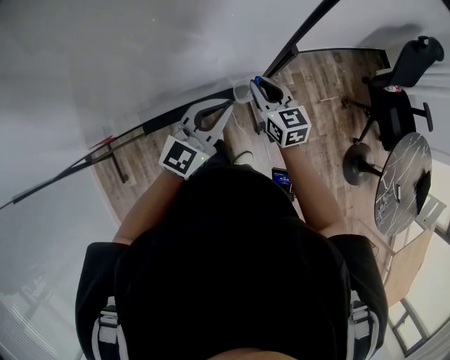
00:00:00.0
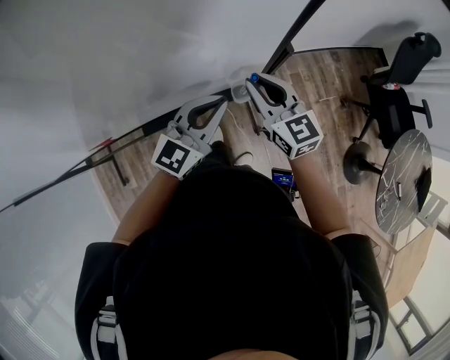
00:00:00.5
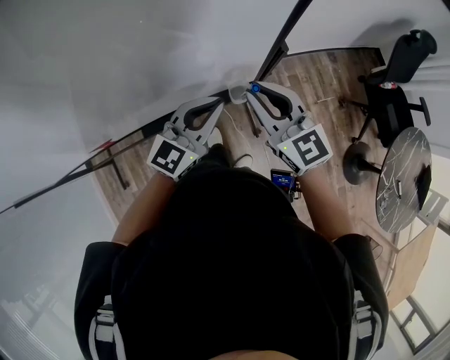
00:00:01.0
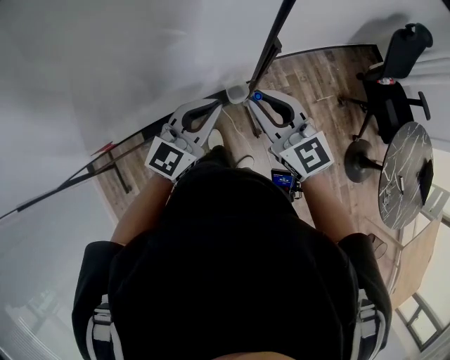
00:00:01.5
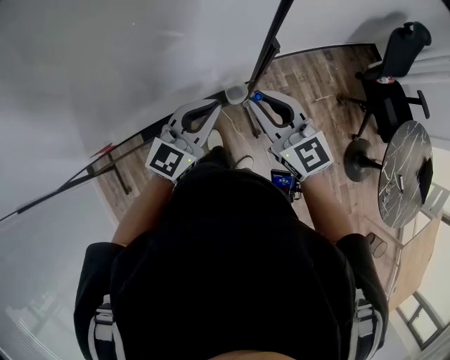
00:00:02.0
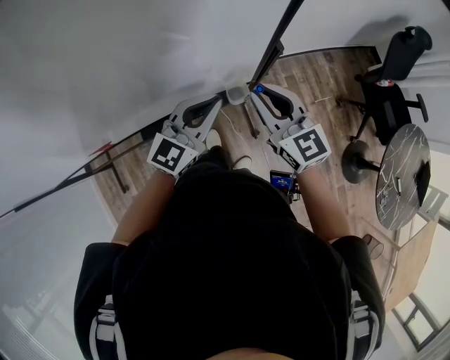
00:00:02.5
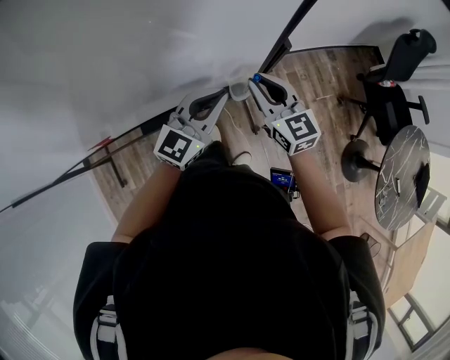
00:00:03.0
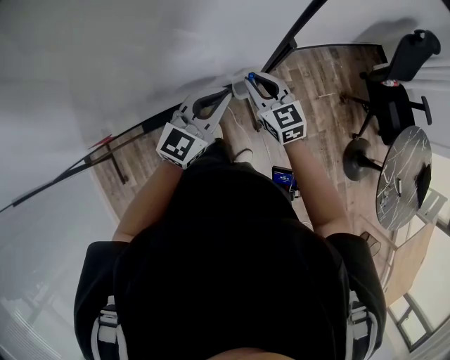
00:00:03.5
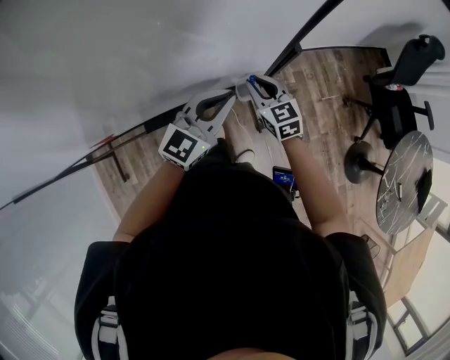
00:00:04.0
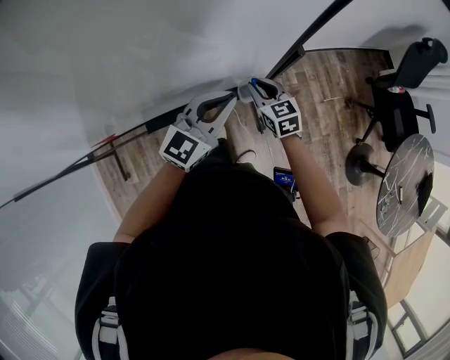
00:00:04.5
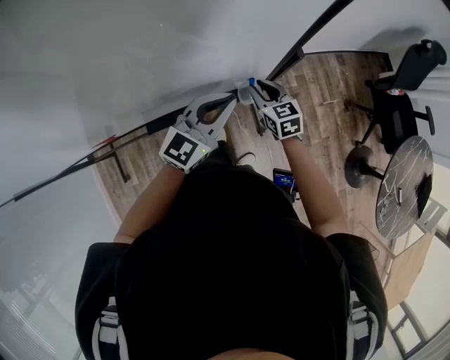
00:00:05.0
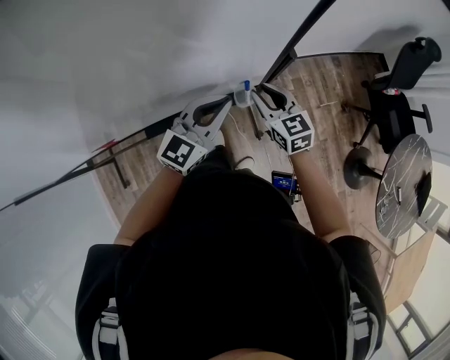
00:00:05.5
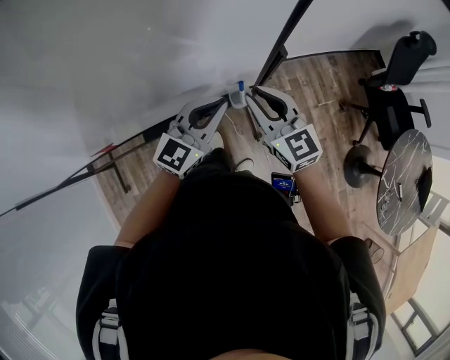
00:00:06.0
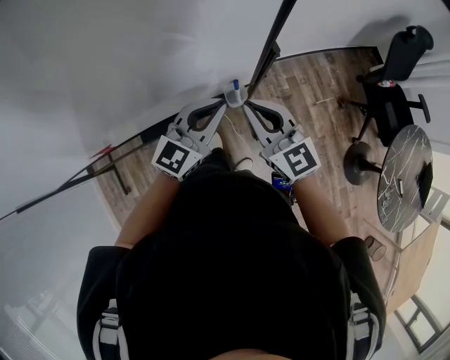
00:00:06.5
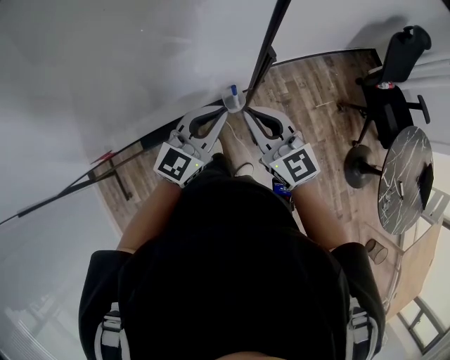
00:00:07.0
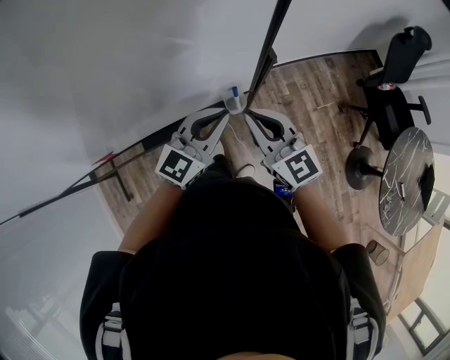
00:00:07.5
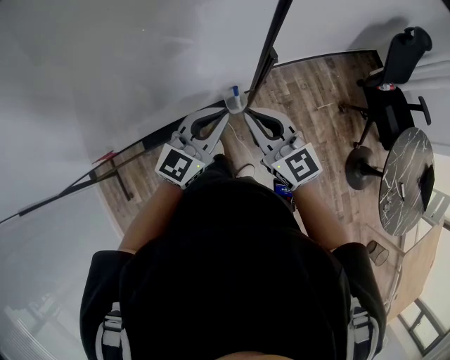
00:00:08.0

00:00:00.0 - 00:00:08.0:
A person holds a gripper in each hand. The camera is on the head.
00:00:00.0 - 00:00:02.0: The right gripper shifts some 15 cm upward and backward.
00:00:02.0 - 00:00:04.0: The right gripper is displaced downward and forward by roughly 20 cm.
00:00:04.0 - 00:00:06.0: The right gripper travels upward by about 15 cm.
00:00:06.0 - 00:00:08.0: The grippers make only small movements.

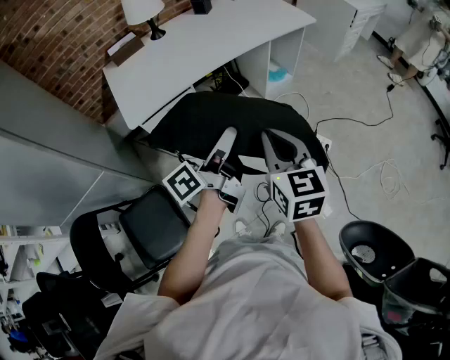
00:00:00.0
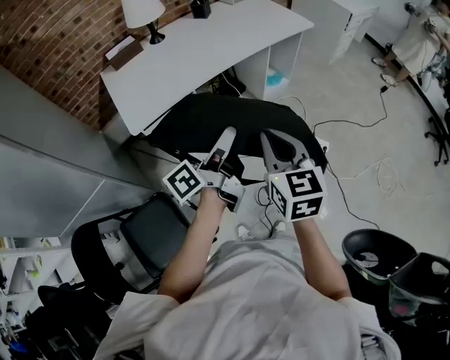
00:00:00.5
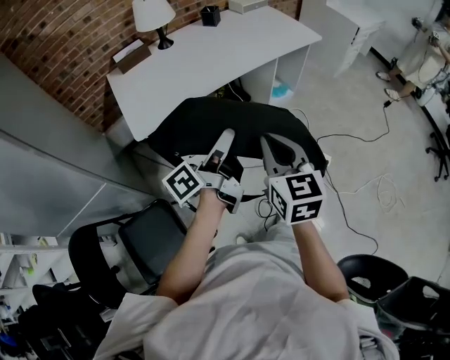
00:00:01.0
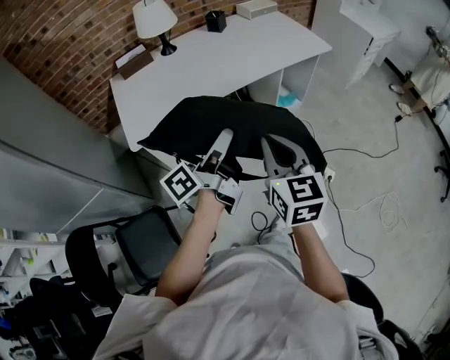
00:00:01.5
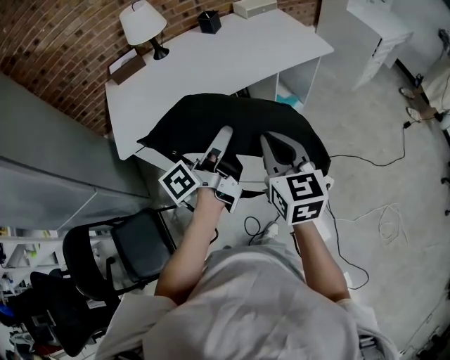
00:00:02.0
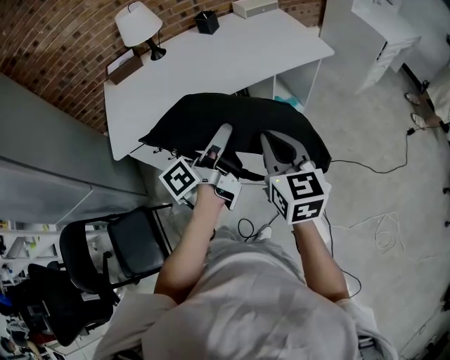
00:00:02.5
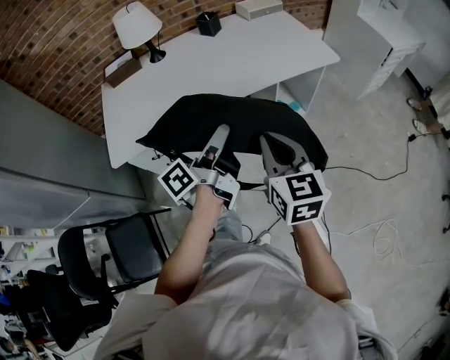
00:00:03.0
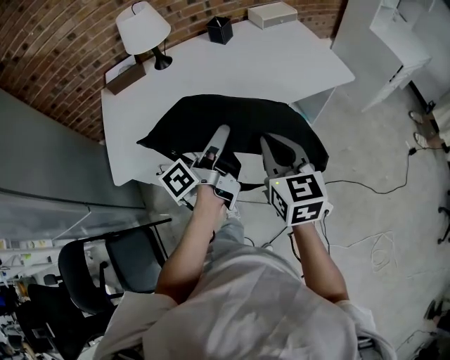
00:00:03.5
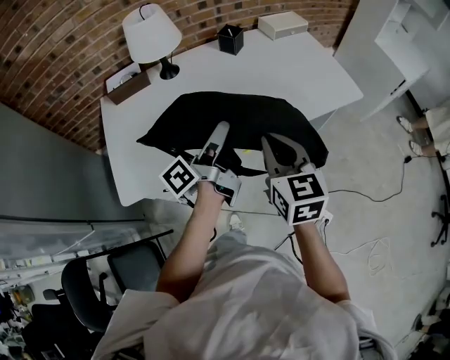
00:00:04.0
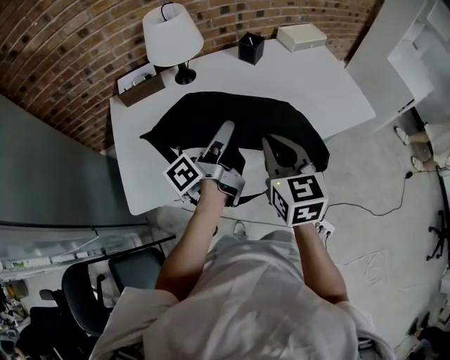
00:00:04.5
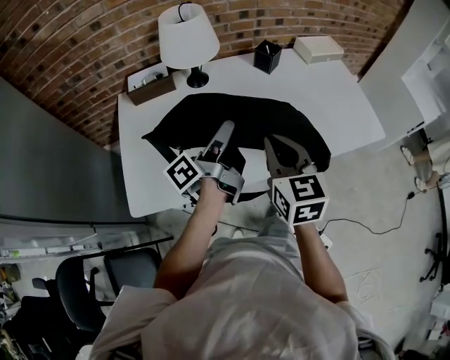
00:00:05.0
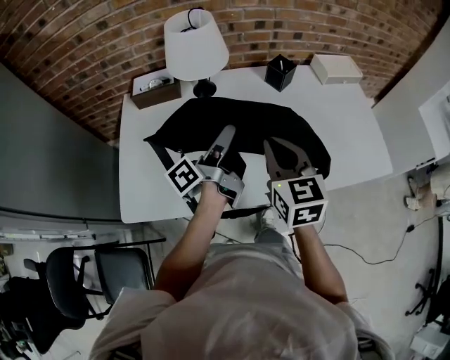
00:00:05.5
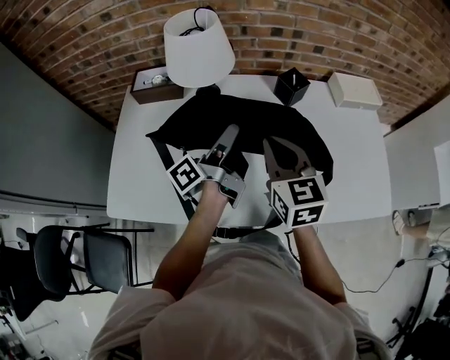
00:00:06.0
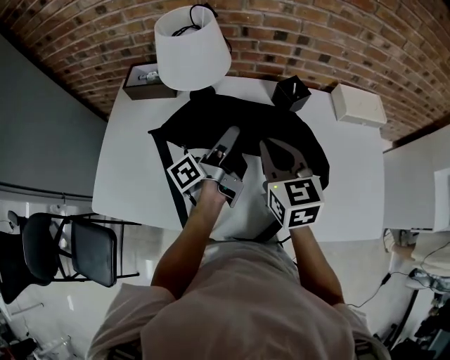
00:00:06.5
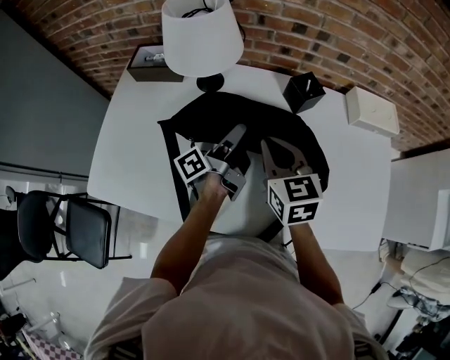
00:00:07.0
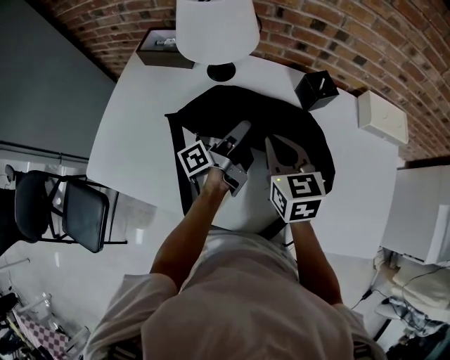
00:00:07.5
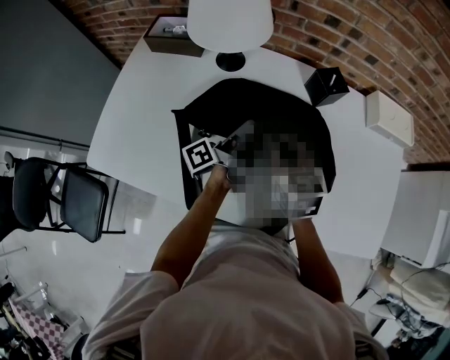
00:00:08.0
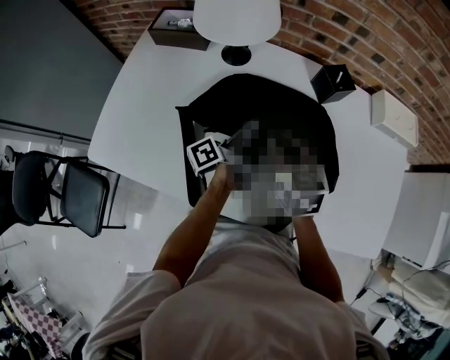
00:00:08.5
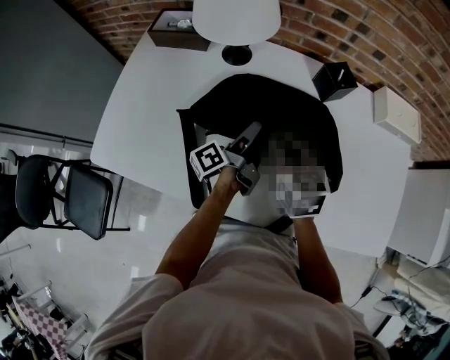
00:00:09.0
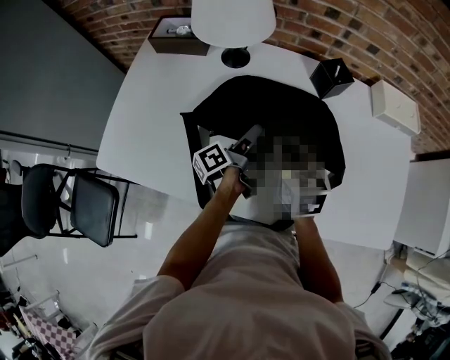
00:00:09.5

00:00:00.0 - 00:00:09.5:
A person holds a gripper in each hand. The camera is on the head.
00:00:00.0 - 00:00:02.0: The right gripper shifts by about 20 cm.
00:00:02.0 - 00:00:04.0: The right gripper shifts by roughly 25 cm.
00:00:04.0 - 00:00:05.5: The right gripper ends up roughly 20 cm from where it was.
00:00:05.5 - 00:00:07.5: The right gripper ends up roughly 20 cm from where it was, and turns by about 20 degrees.
00:00:07.5 - 00:00:09.5: The right gripper moves roughly 5 cm.

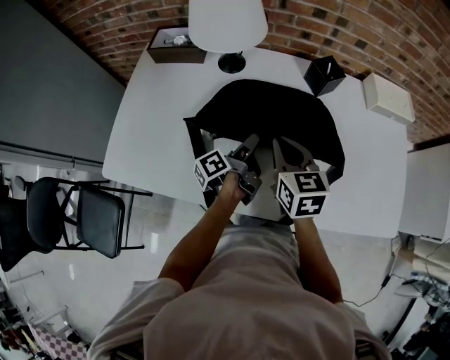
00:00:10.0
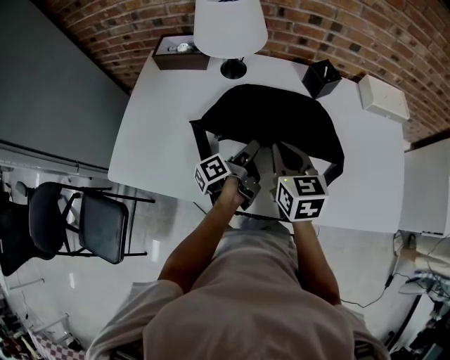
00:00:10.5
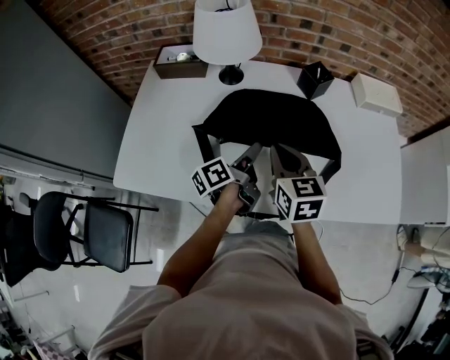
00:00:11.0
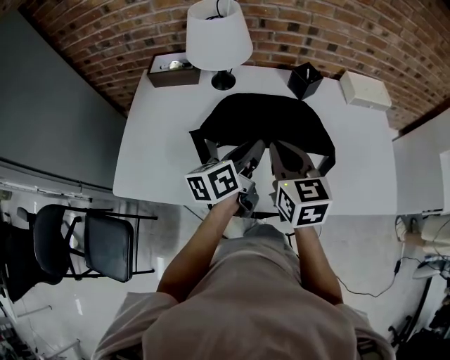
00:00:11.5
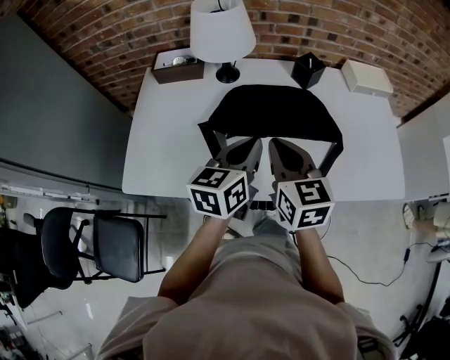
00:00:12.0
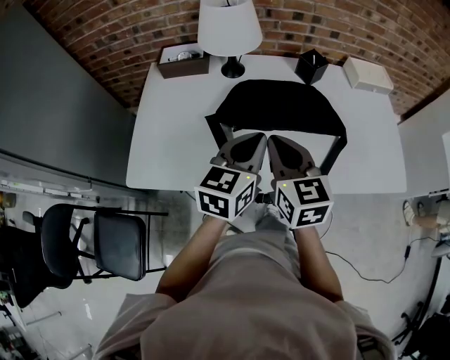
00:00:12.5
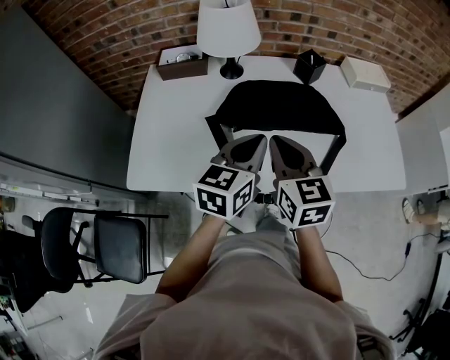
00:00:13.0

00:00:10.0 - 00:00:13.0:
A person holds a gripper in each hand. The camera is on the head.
00:00:10.0 - 00:00:11.5: The right gripper heads upward, covering roughly 10 cm.
00:00:11.5 - 00:00:13.0: The right gripper ends up roughly 10 cm from where it was.

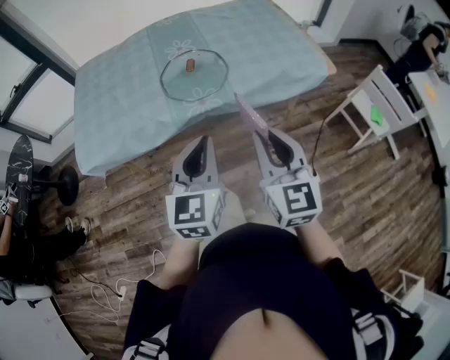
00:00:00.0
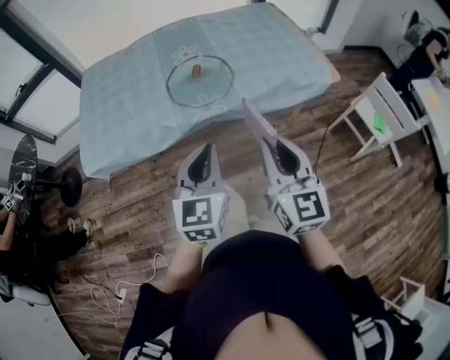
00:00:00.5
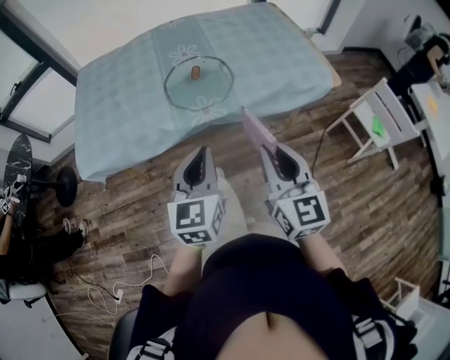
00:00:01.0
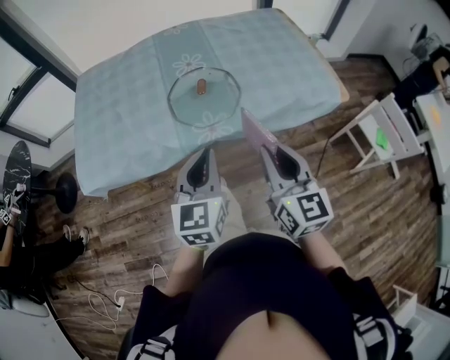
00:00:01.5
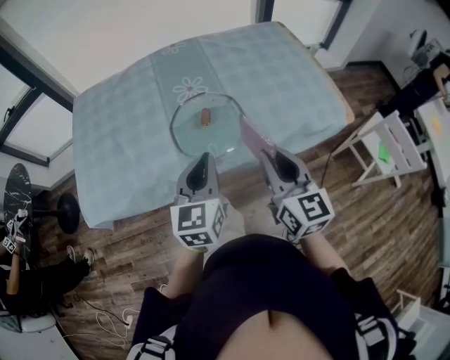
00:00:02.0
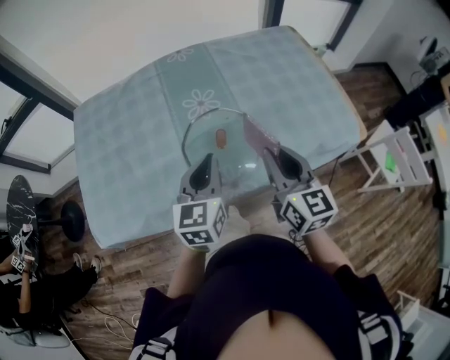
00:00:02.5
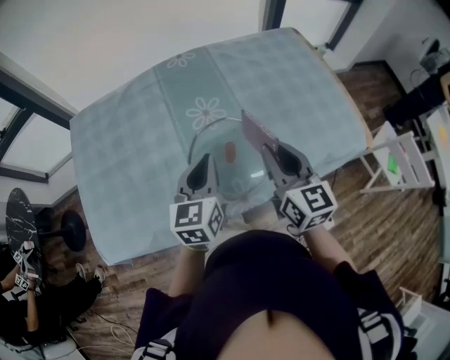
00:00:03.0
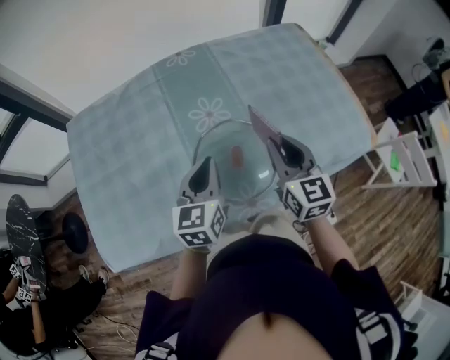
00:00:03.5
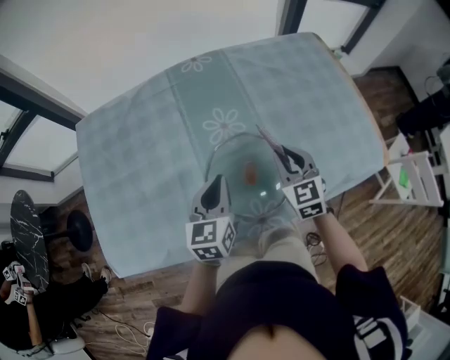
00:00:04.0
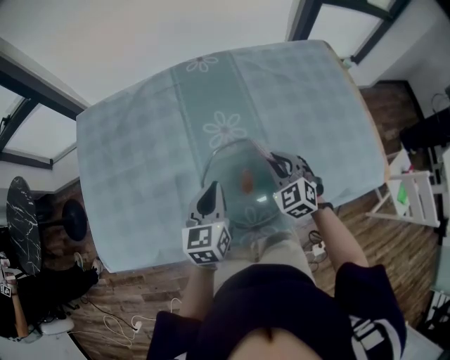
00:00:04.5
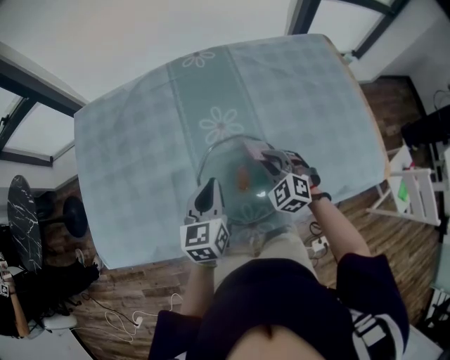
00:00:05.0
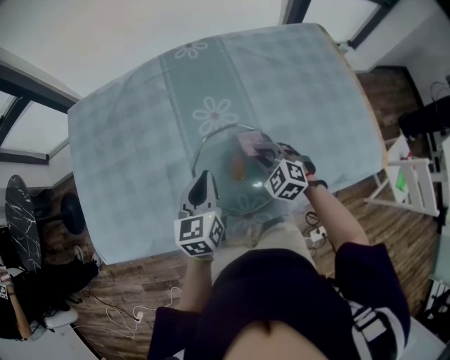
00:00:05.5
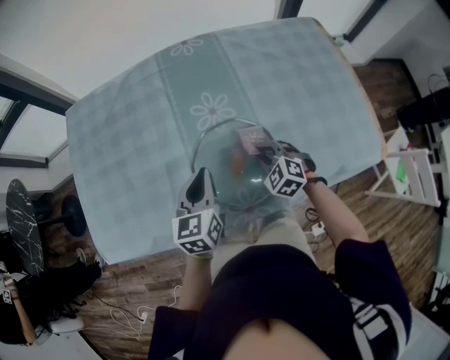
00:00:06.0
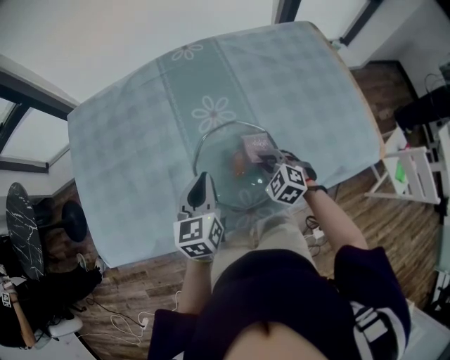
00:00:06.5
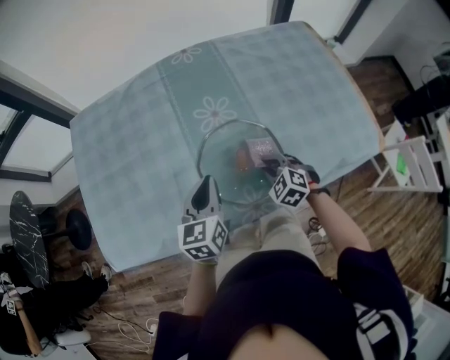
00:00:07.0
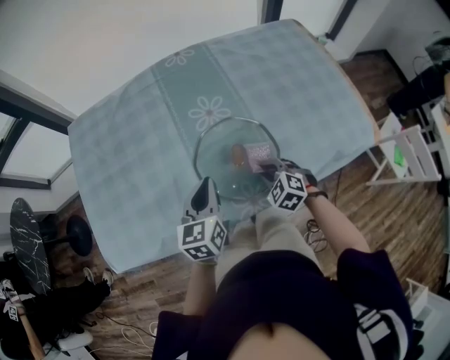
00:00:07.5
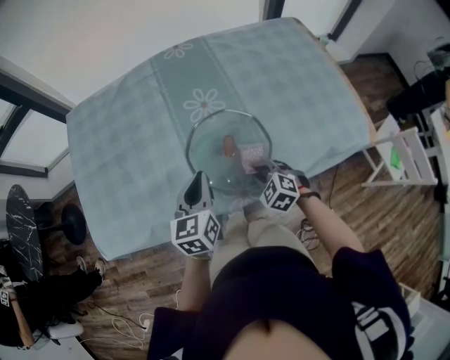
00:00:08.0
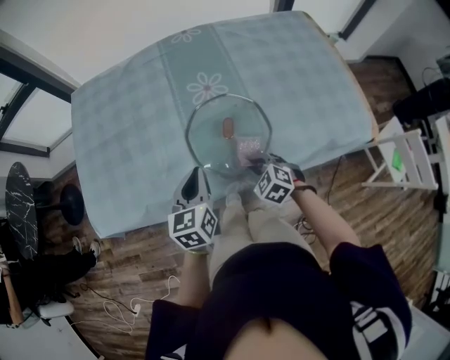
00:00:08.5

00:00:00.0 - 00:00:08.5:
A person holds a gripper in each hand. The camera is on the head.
00:00:00.0 - 00:00:02.0: The two grippers go roughly 20 cm forward.
00:00:02.0 - 00:00:04.0: The left gripper moves forward, to the left and downward, roughly 25 cm, while the right gripper goes roughly 30 cm forward and downward, and changes its angle by about 30 degrees.
00:00:04.0 - 00:00:06.5: The right gripper is displaced downward by about 15 cm, and changes its angle by roughly 40 degrees.
00:00:06.5 - 00:00:08.5: The grippers both shift backward by roughly 10 cm.
